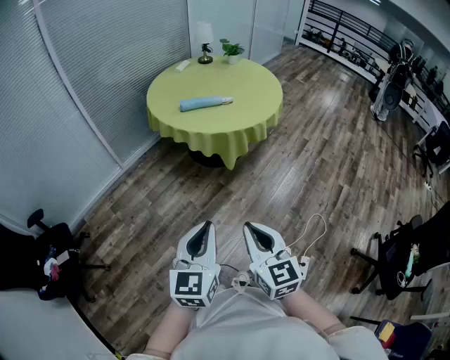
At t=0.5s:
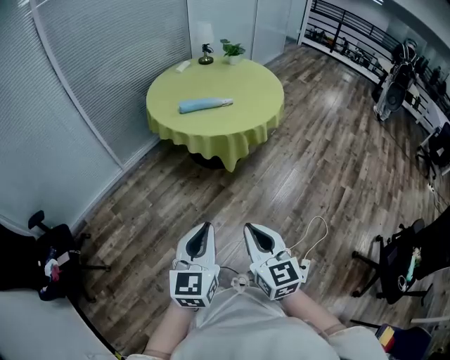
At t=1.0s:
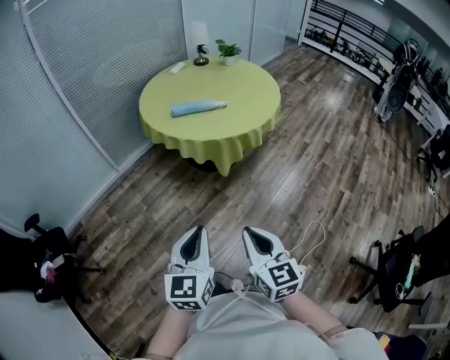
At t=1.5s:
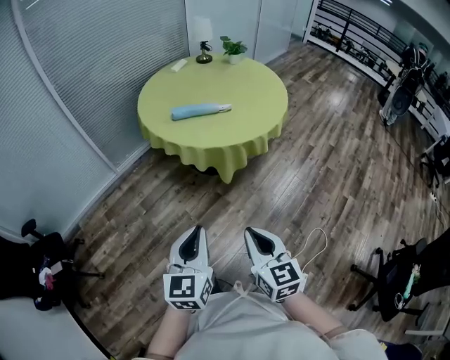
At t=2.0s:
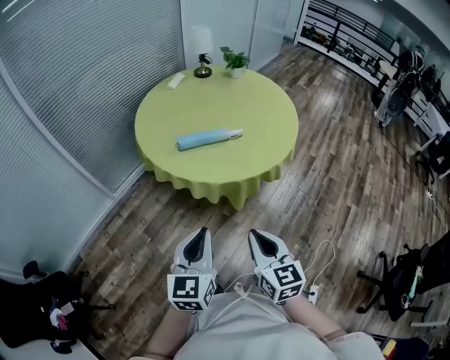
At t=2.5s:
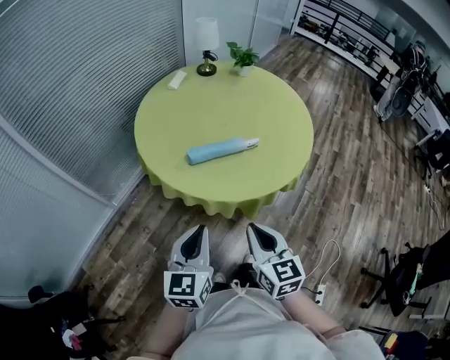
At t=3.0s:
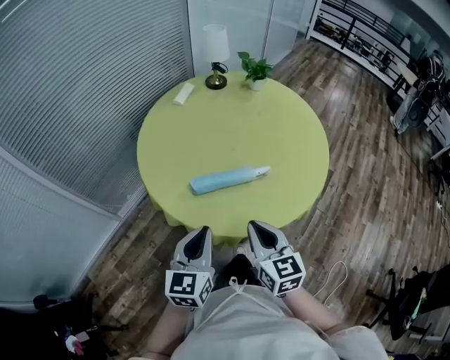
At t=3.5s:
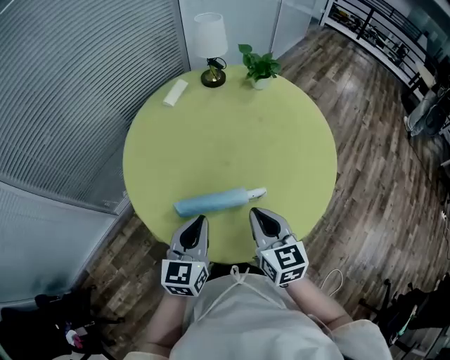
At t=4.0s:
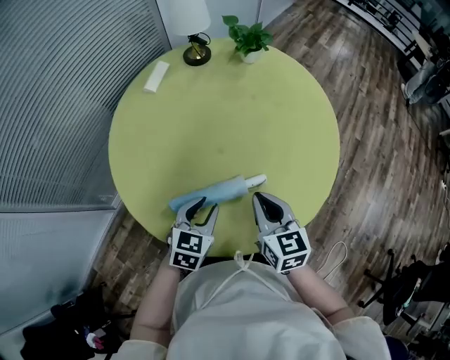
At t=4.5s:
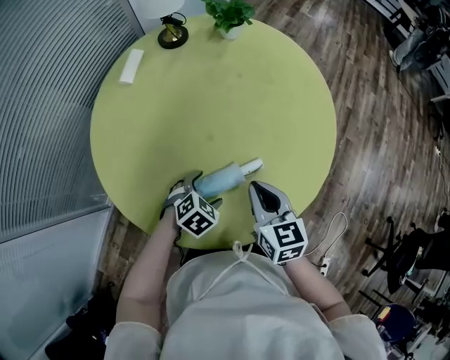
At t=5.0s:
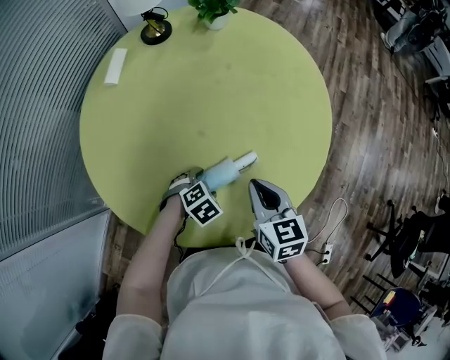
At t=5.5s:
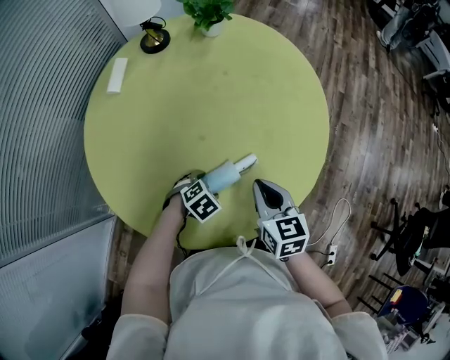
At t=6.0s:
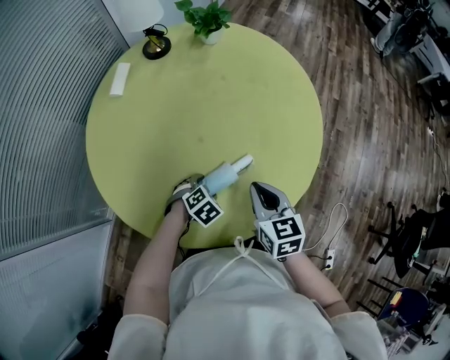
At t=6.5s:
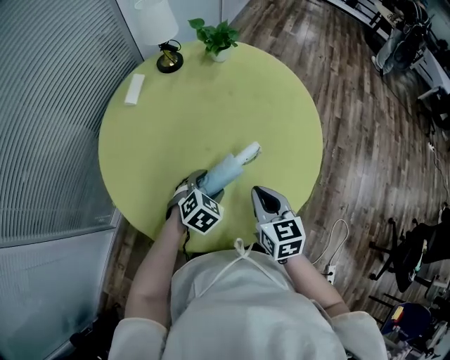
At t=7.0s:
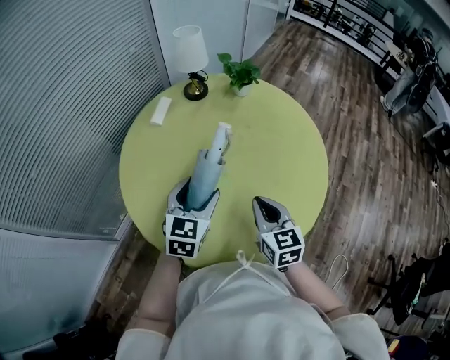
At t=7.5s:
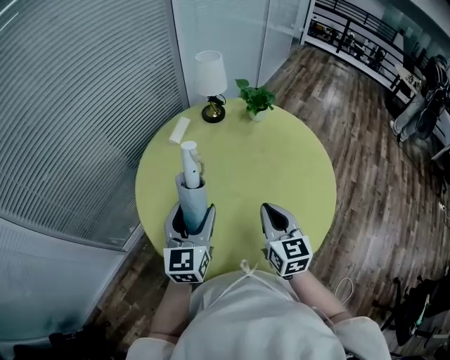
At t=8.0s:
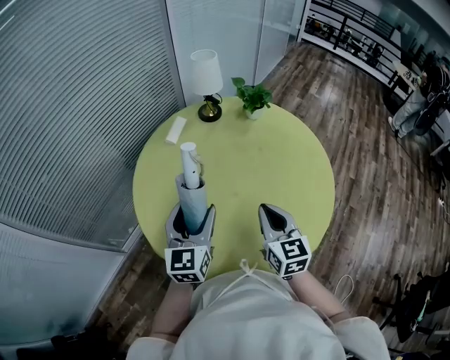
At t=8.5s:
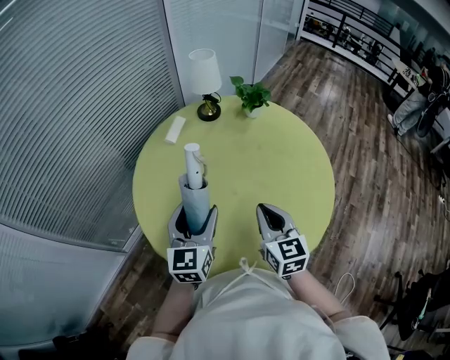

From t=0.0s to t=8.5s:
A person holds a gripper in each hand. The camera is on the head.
From t=0.0s to t=2.0s: The grippers both shift forward by approximately 35 cm.
From t=2.0s to t=4.0s: Both grippers are carried forward, roughly 50 cm. The left gripper rotates approximately 30 degrees.
From t=4.0s to t=6.5s: The left gripper moves about 15 cm downward and comes back, swivels roughly 30 degrees, and opens.
From t=6.5s to t=8.5s: The left gripper travels upward and to the left by approximately 25 cm, and tips its fingers upward by about 50 degrees, while the right gripper heads upward and to the left, covering some 10 cm.

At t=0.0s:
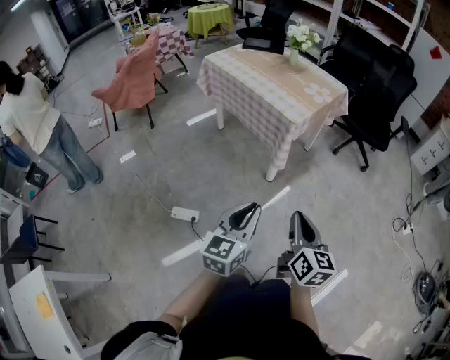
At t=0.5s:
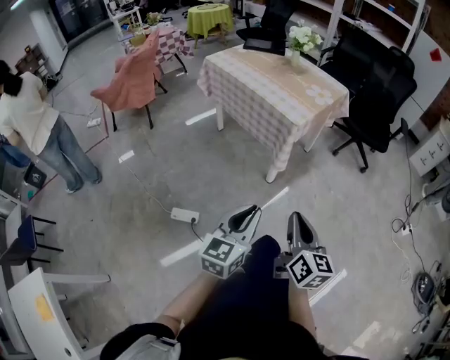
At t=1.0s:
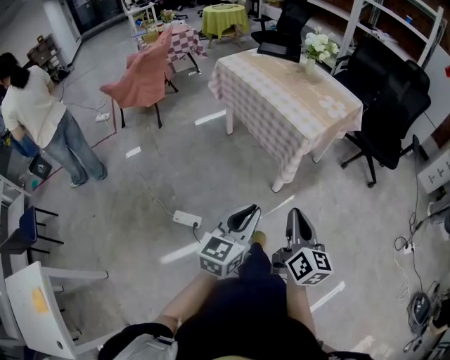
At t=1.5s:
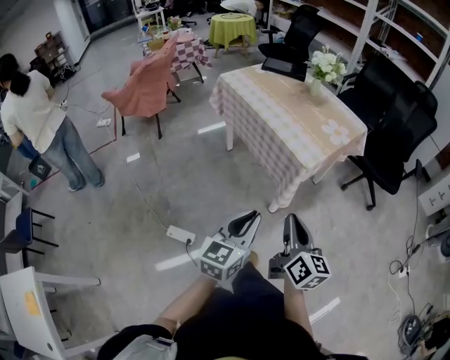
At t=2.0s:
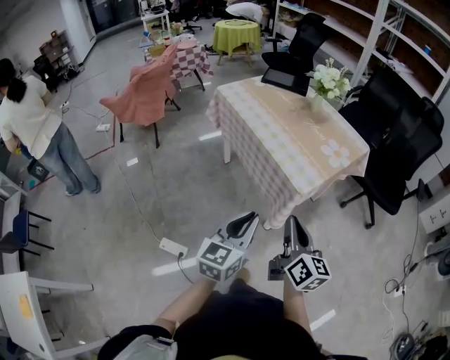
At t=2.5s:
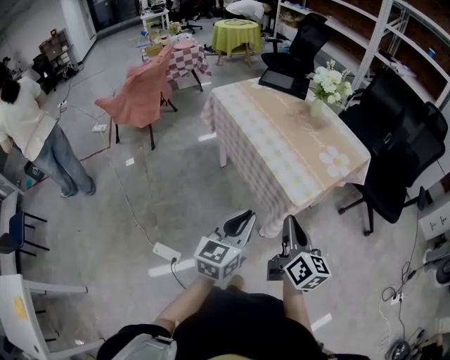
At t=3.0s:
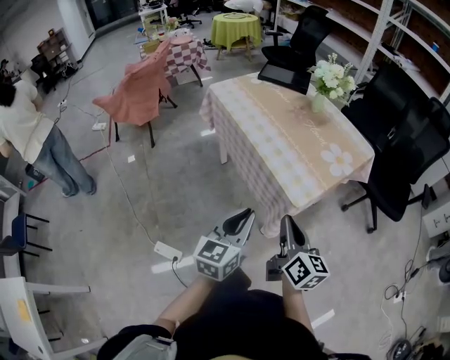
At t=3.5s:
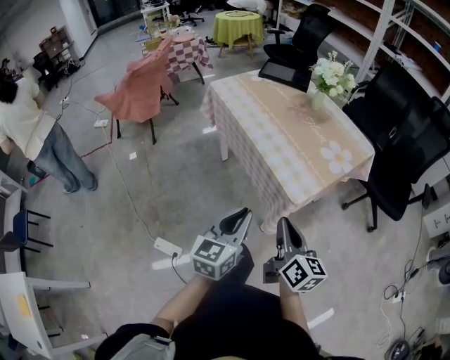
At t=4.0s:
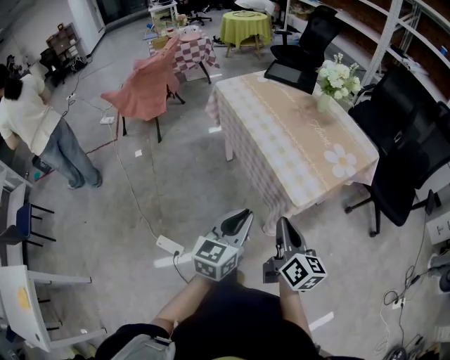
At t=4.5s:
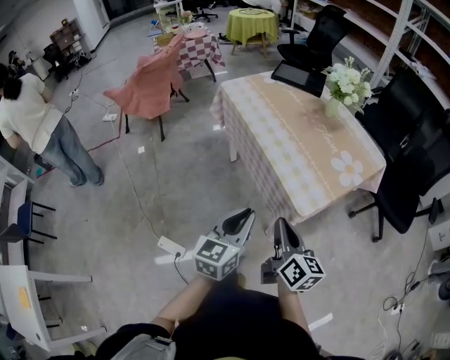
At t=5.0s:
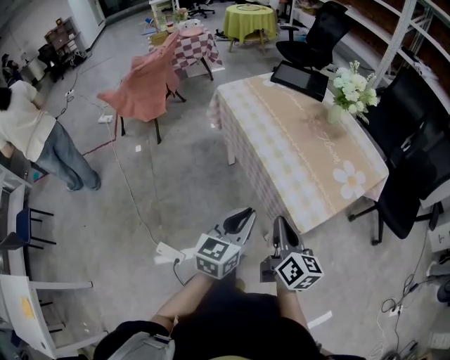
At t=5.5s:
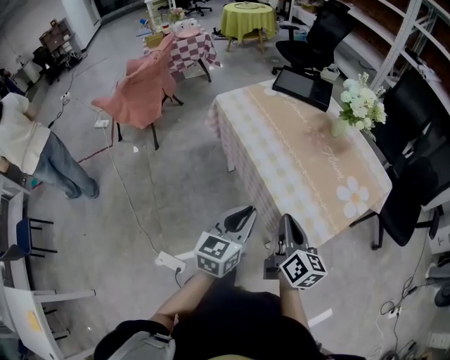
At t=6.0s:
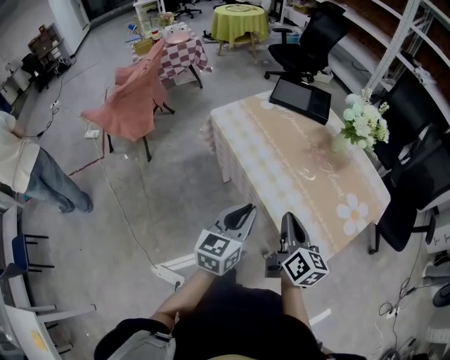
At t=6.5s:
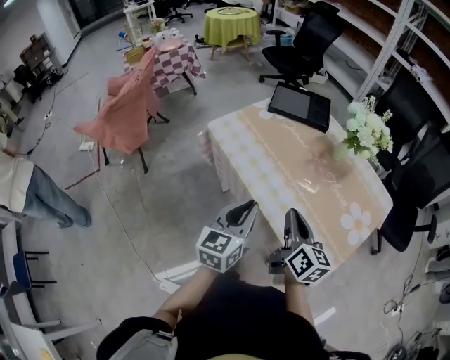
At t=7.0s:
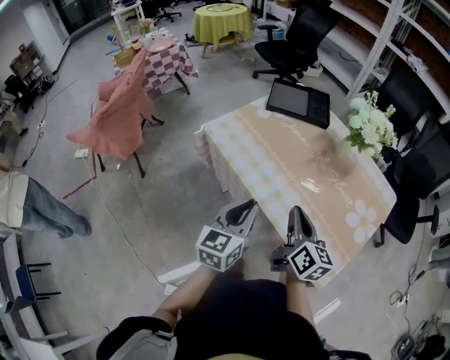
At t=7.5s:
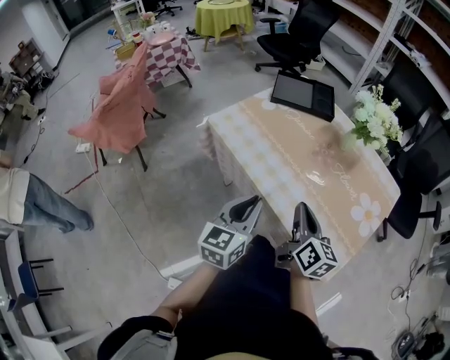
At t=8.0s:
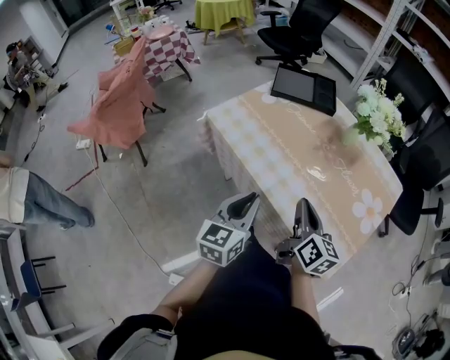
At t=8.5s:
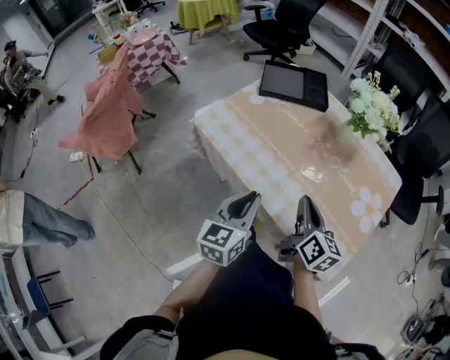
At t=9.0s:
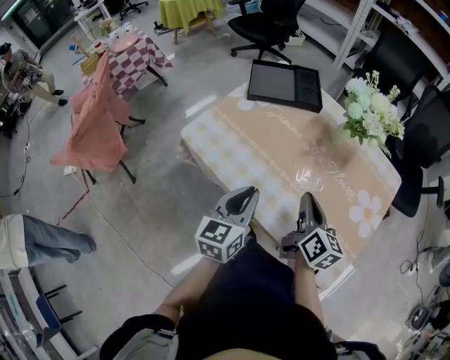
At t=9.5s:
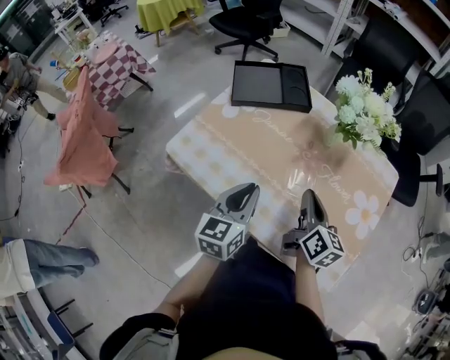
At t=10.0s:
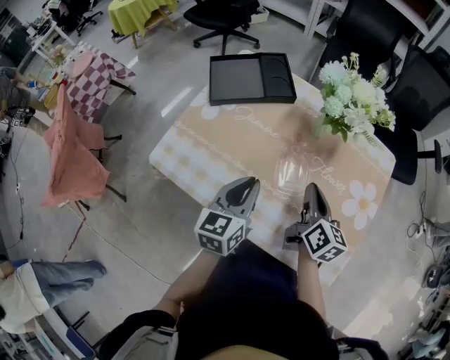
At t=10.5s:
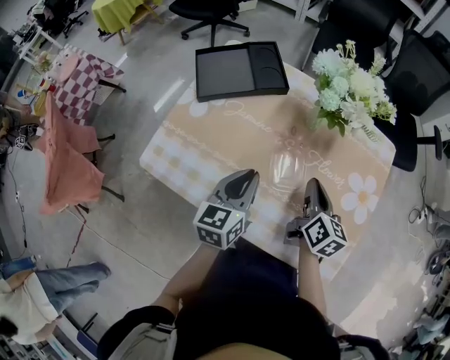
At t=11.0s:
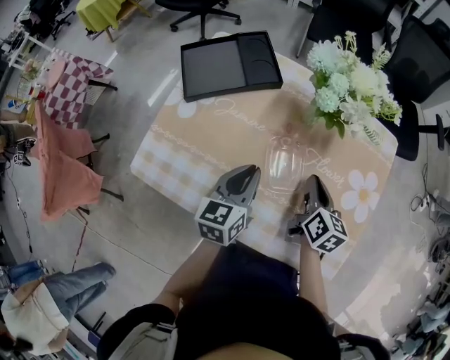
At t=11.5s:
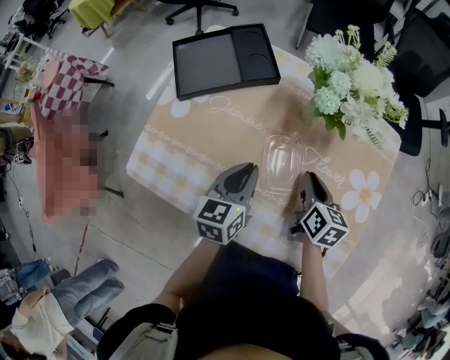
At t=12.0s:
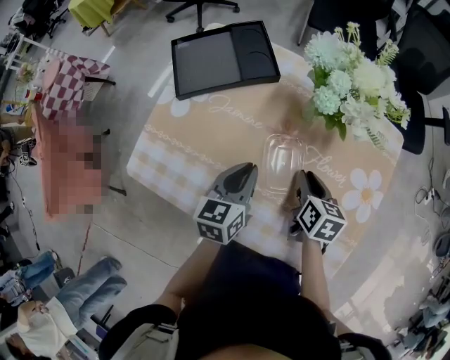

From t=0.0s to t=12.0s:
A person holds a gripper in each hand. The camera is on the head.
From t=0.0s to t=2.0s: The two grippers go about 25 cm forward.
From t=2.0s to t=4.0s: The two grippers go roughly 10 cm forward.
From t=4.0s to t=6.0s: Both grippers move forward, approximately 25 cm.
From t=6.0s to t=8.0s: The right gripper travels forward by about 10 cm. The left gripper is displaced forward and to the left by some 10 cm.
From t=8.0s to t=10.0s: The left gripper heads forward, covering some 20 cm, while the right gripper travels forward and to the right by approximately 20 cm, and swivels some 20 degrees.
From t=10.0s to t=12.0s: The right gripper goes some 10 cm downward, and turns by approximately 30 degrees. The left gripper travels forward and downward by roughly 10 cm.

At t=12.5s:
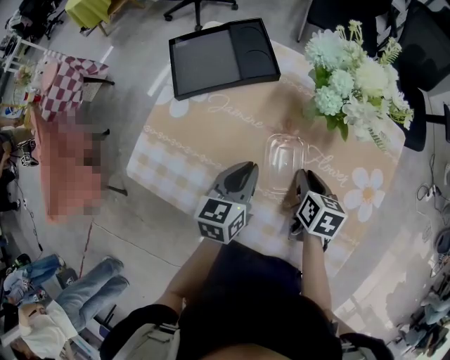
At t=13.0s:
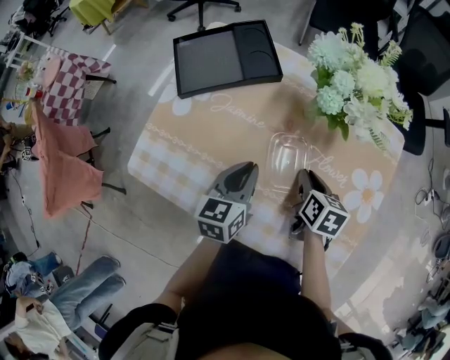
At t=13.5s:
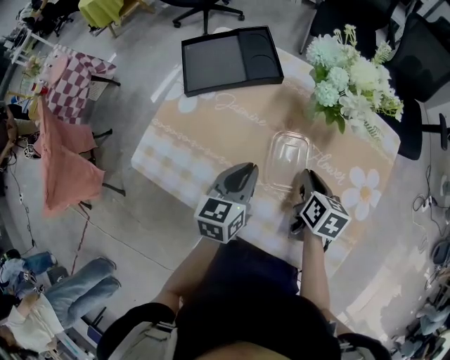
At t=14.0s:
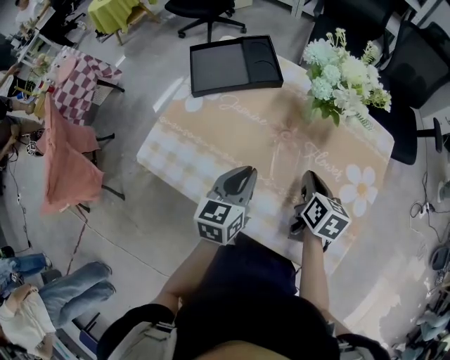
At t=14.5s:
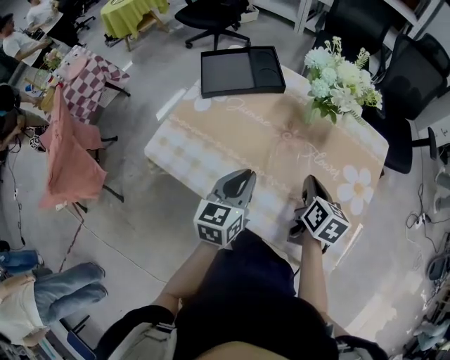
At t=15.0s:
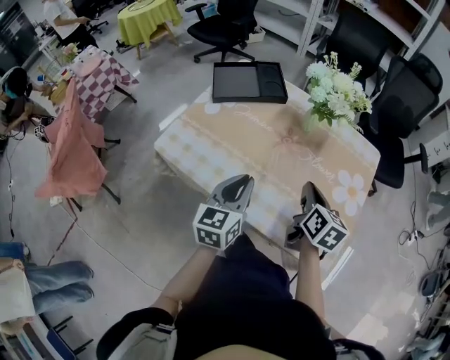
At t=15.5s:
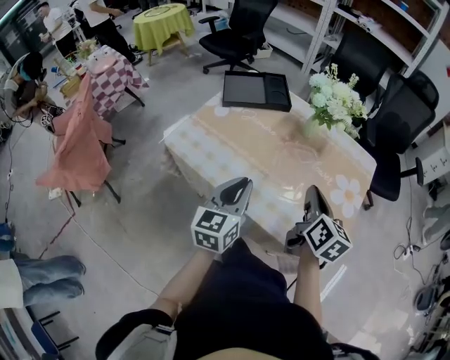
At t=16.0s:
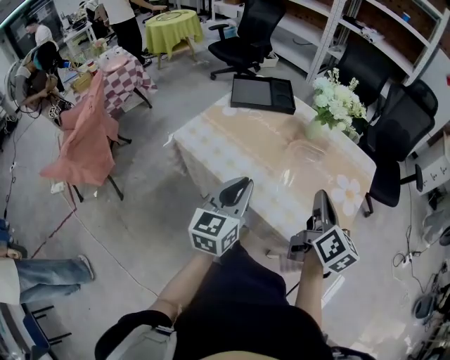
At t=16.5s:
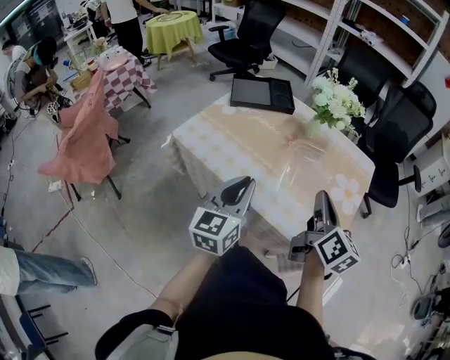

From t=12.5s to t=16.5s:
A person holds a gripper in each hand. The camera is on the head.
From t=12.5s to t=14.5s: The right gripper moves upward and backward, about 10 cm, while the left gripper shifts some 10 cm backward and upward.
From t=14.5s to t=16.5s: Both grippers move backward and upward, some 20 cm. The right gripper changes its angle by some 30 degrees.

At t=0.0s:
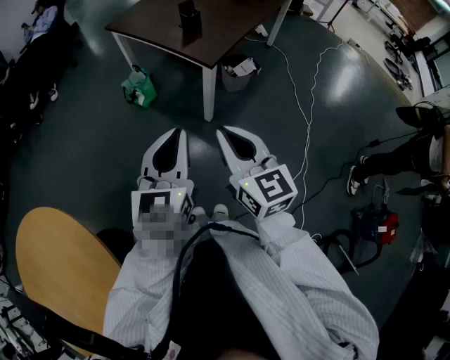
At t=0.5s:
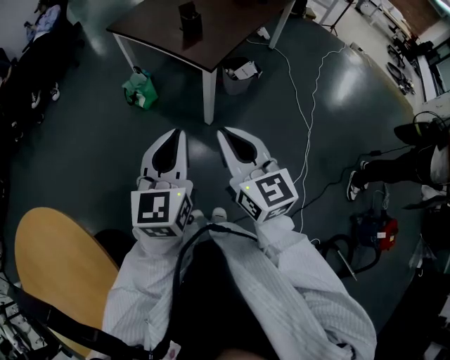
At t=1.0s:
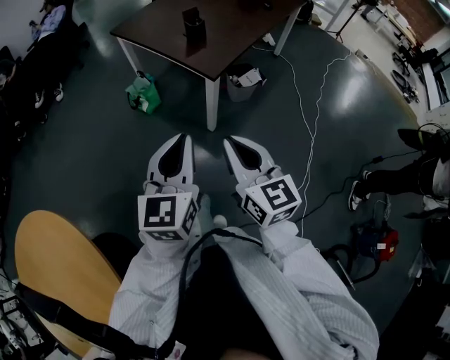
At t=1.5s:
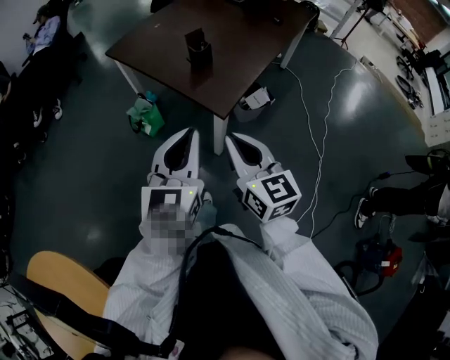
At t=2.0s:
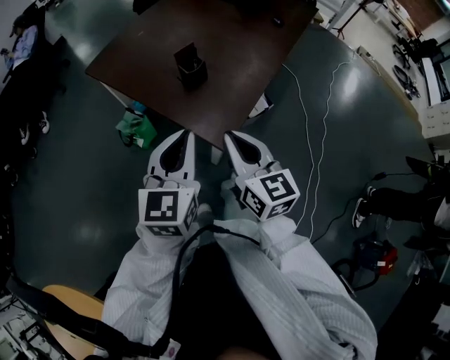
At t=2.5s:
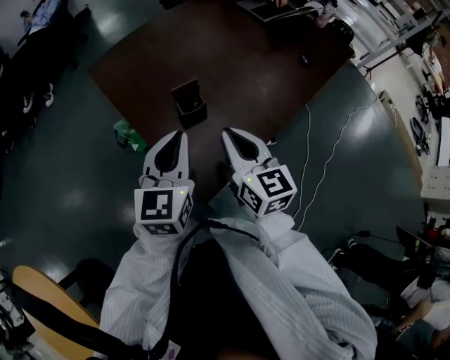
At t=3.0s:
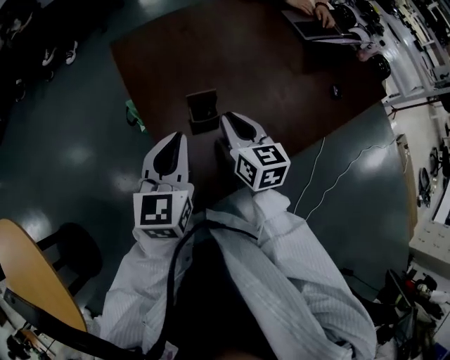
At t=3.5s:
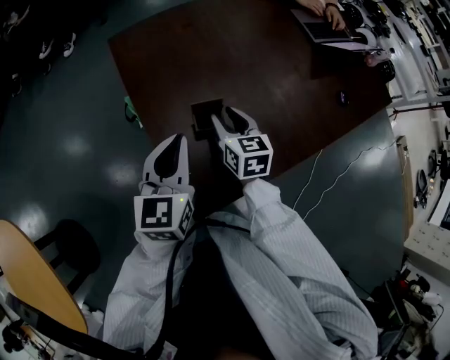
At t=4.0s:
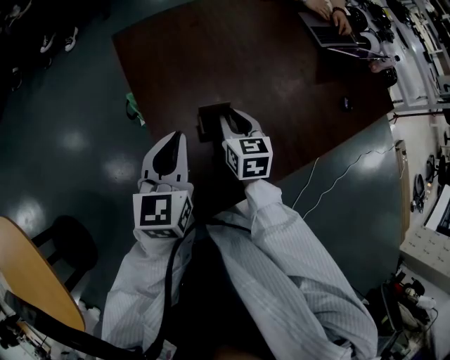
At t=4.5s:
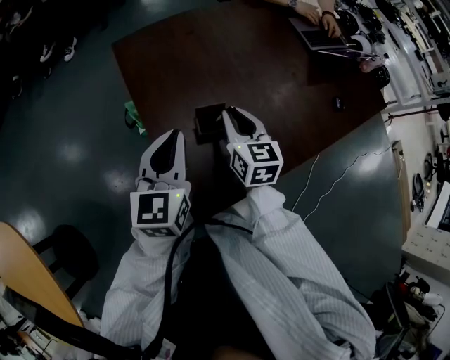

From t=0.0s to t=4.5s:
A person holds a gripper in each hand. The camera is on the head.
From t=0.0s to t=2.0s: Both grippers are carried forward, about 40 cm.
From t=2.0s to t=4.5s: The left gripper changes place by roughly 25 cm, and swivels roughly 30 degrees. The right gripper changes place by about 40 cm, and swivels roughly 30 degrees.
